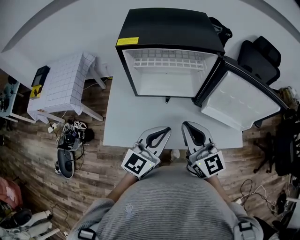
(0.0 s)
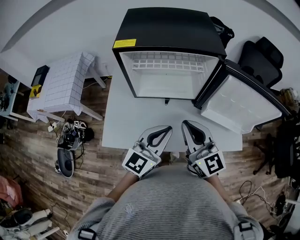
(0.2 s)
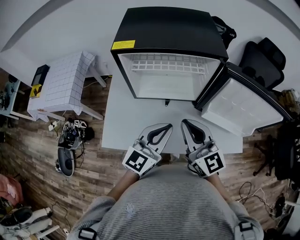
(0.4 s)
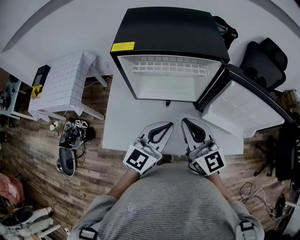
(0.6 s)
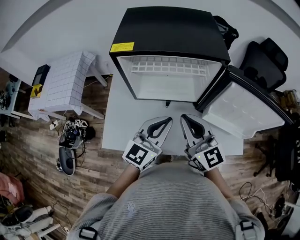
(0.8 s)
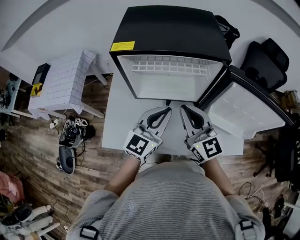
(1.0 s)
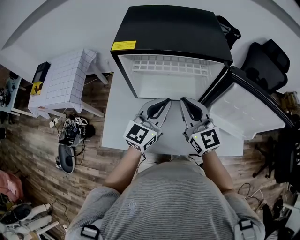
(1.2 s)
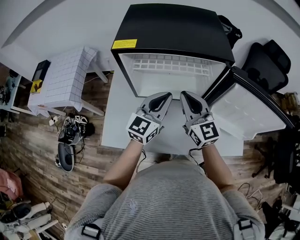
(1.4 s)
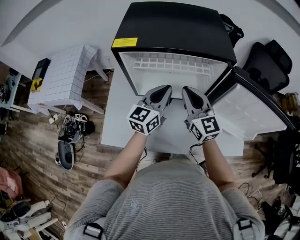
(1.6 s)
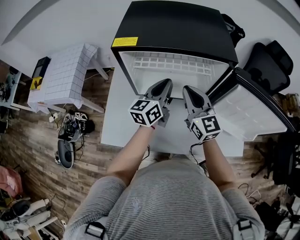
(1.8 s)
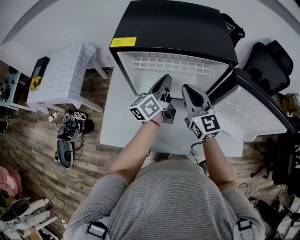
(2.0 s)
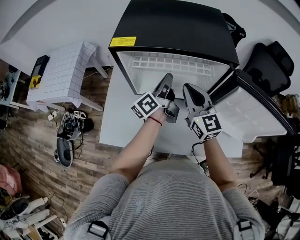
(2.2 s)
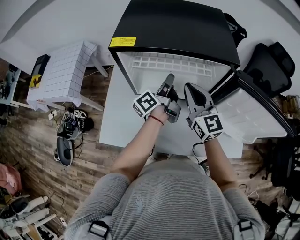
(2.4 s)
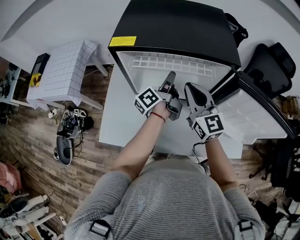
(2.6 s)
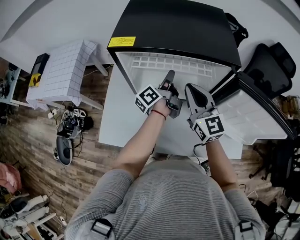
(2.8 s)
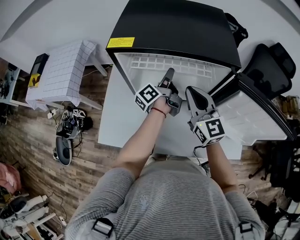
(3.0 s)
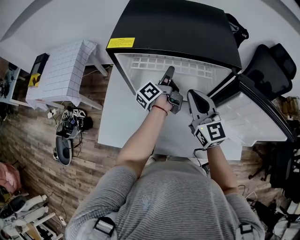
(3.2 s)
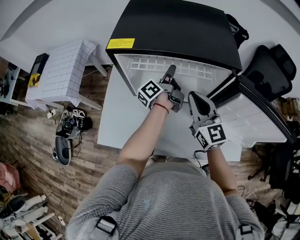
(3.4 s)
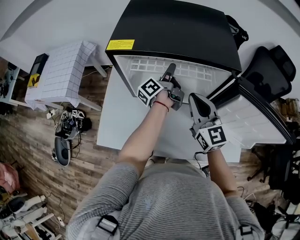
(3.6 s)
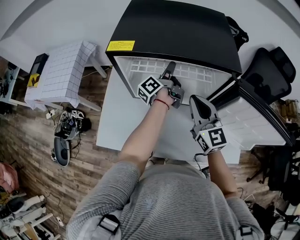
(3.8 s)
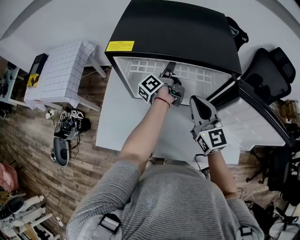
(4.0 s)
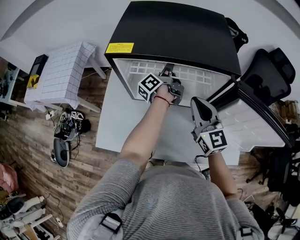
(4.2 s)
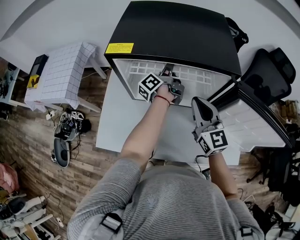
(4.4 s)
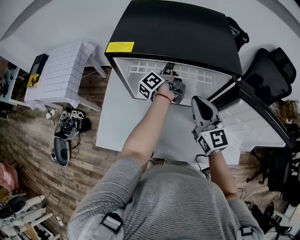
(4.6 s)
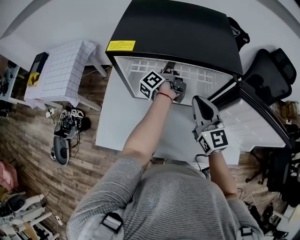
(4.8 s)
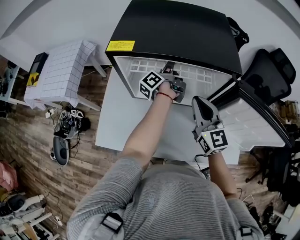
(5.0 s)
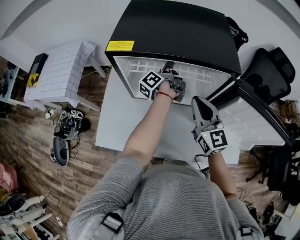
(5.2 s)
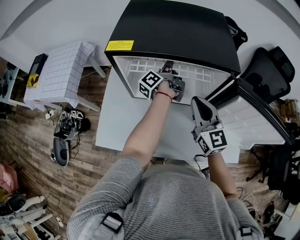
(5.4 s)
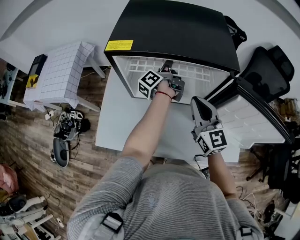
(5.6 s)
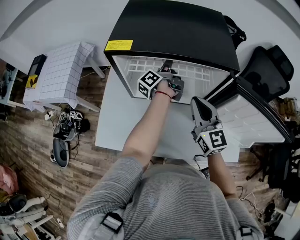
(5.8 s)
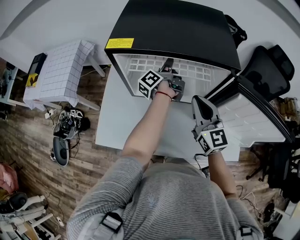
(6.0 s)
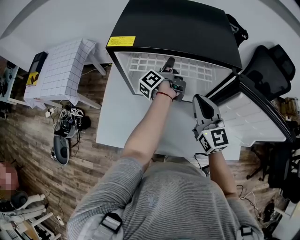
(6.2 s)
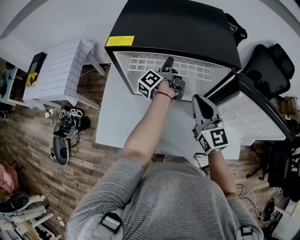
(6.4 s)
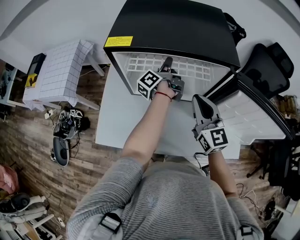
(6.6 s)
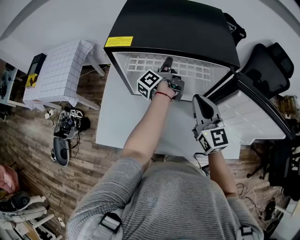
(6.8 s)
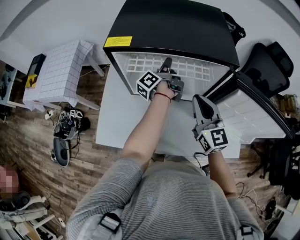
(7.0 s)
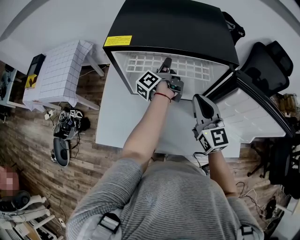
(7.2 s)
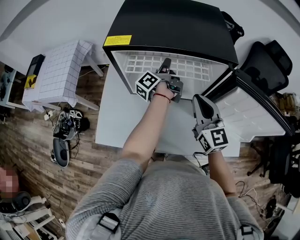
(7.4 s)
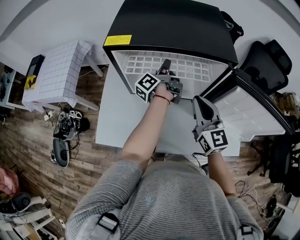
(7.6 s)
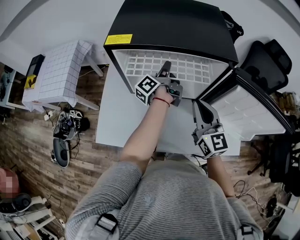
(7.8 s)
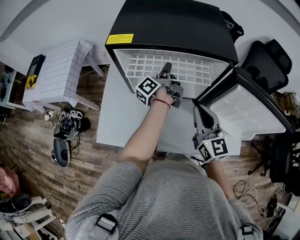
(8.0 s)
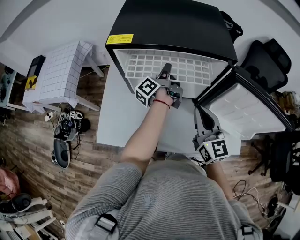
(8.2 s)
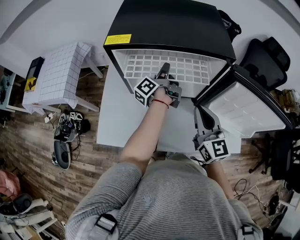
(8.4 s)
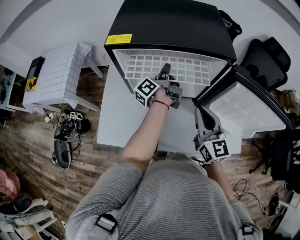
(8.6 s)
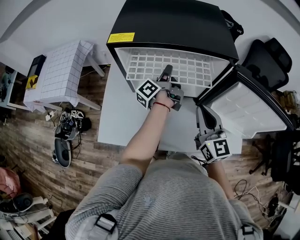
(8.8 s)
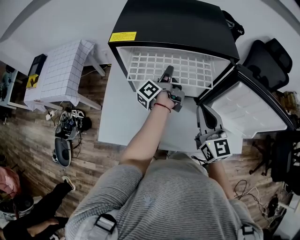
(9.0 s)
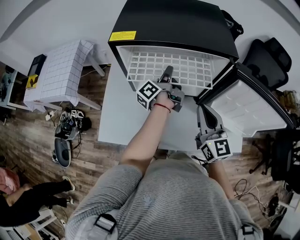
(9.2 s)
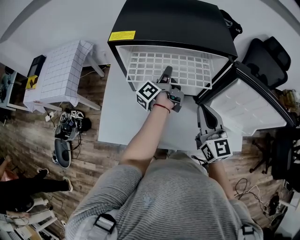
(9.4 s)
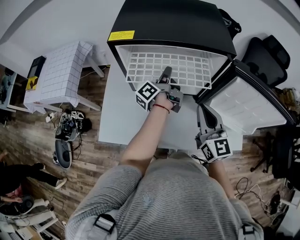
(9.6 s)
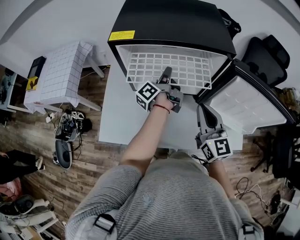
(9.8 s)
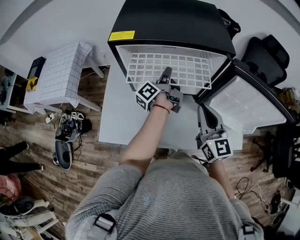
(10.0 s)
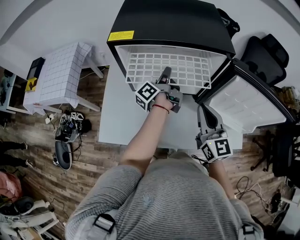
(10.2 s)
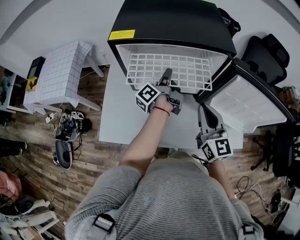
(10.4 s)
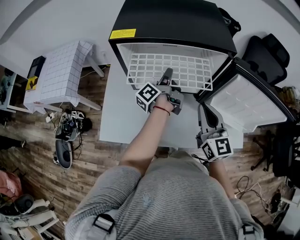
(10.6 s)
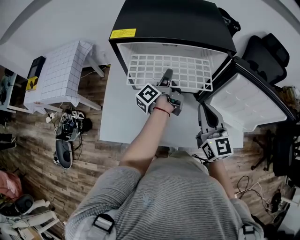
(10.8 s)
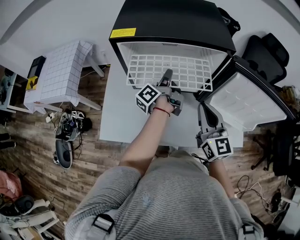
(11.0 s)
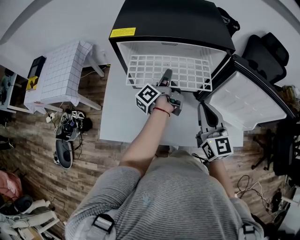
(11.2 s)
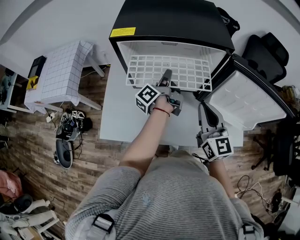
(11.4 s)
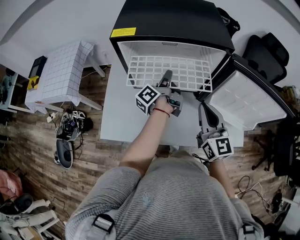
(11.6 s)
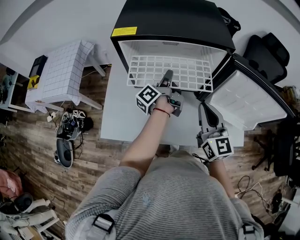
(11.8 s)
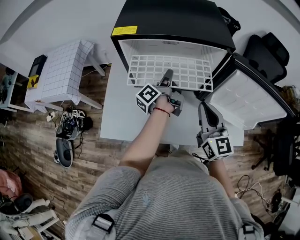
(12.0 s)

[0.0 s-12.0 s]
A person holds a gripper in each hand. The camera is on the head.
0.0 to 1.6 s: The two grippers go roughly 20 cm forward.
1.6 to 3.0 s: The left gripper goes about 10 cm forward and downward, rotates around the line of its fingers by about 60 degrees, counterclockwise from behind, and opens up.
3.0 to 4.4 s: The left gripper goes approximately 5 cm forward.
4.4 to 6.0 s: The left gripper closes up.
6.0 to 7.6 s: The grippers move only a little.
7.6 to 9.0 s: The grippers make only small movements.
9.0 to 12.0 s: The grippers make only small movements.

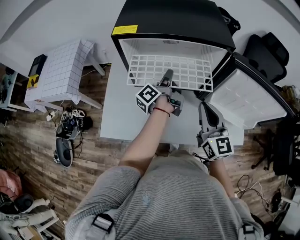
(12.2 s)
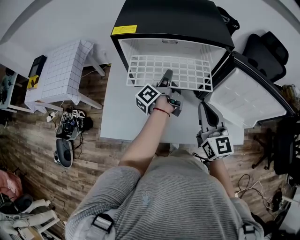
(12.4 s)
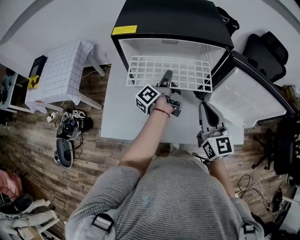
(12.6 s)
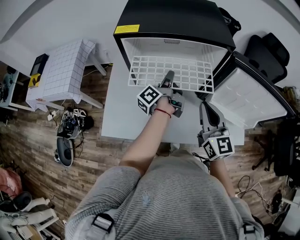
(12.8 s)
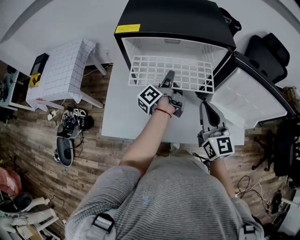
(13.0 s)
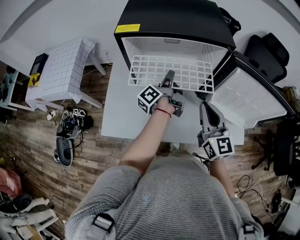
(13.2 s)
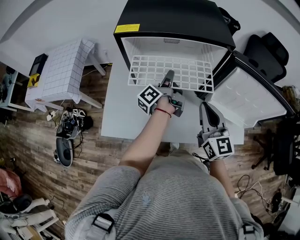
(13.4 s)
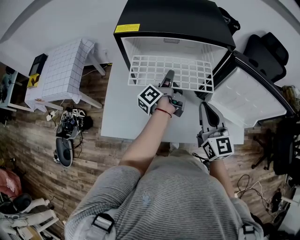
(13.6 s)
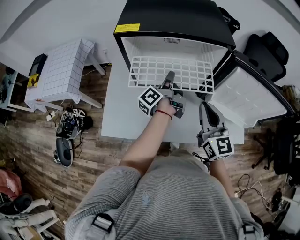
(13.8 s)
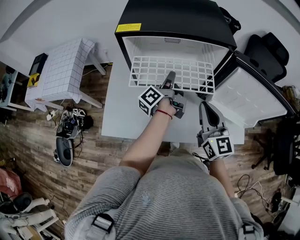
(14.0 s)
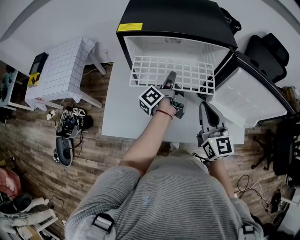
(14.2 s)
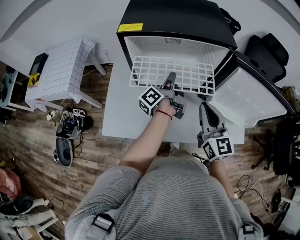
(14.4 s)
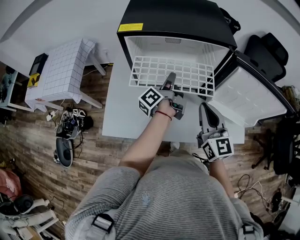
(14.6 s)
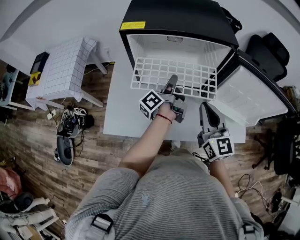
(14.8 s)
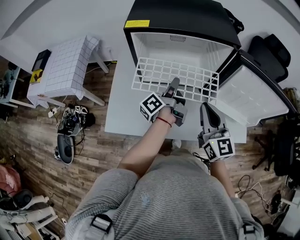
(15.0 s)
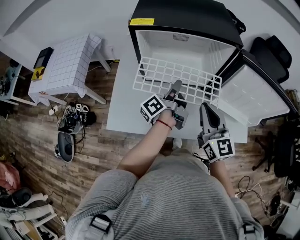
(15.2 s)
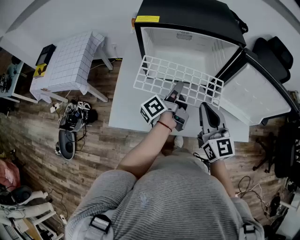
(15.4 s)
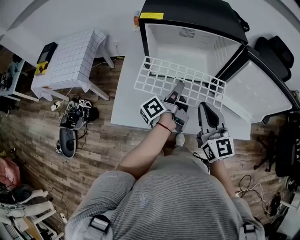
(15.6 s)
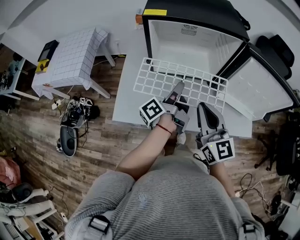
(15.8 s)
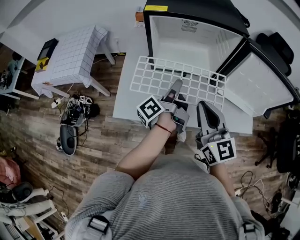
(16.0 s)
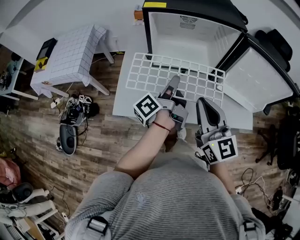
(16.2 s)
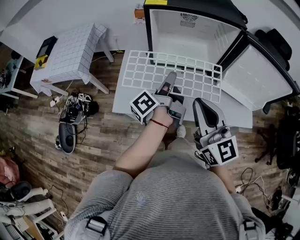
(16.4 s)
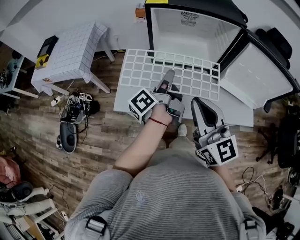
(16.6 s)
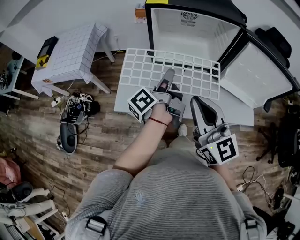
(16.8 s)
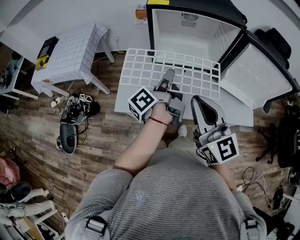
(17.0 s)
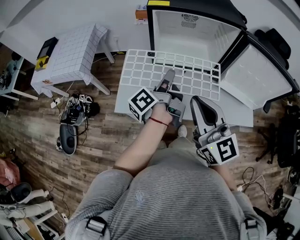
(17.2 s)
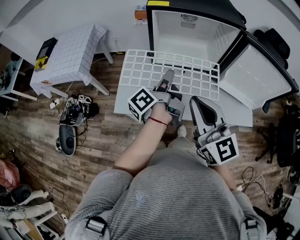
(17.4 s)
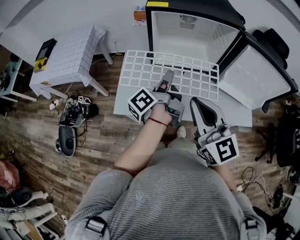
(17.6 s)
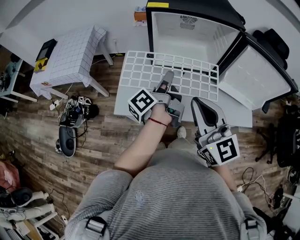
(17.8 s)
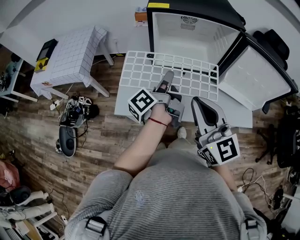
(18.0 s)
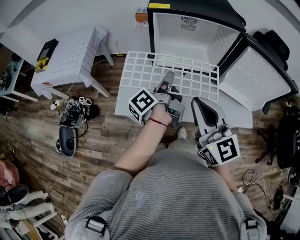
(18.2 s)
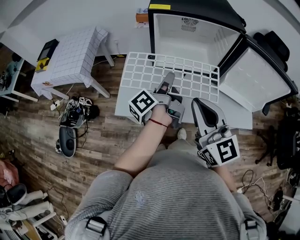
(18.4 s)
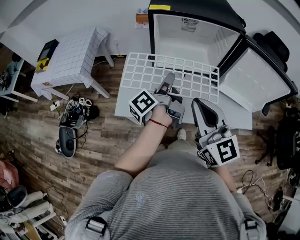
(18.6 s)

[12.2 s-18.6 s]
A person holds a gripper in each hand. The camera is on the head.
12.2 to 13.8 s: Both grippers stay put.
13.8 to 15.4 s: The left gripper is displaced backward by about 10 cm. Meanwhile the right gripper goes approximately 5 cm to the left.
15.4 to 17.0 s: The right gripper moves backward, to the left and upward, approximately 15 cm. The left gripper travels to the left and backward by approximately 10 cm.
17.0 to 18.6 s: The grippers stay close to where they were, moving slightly.

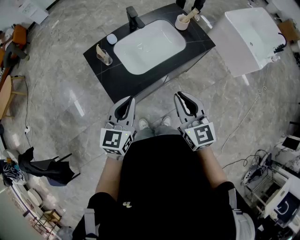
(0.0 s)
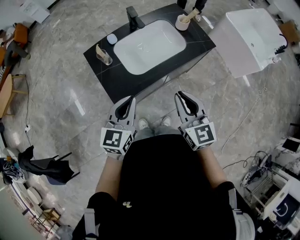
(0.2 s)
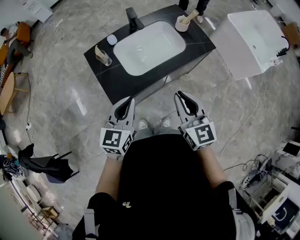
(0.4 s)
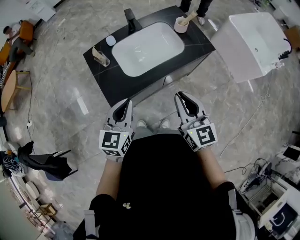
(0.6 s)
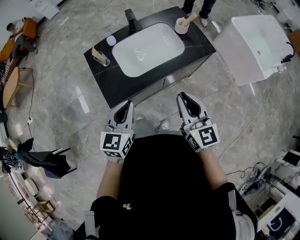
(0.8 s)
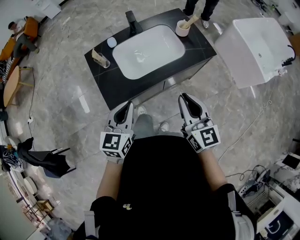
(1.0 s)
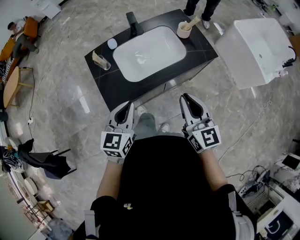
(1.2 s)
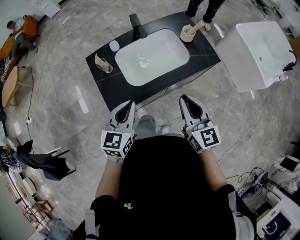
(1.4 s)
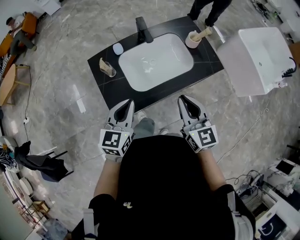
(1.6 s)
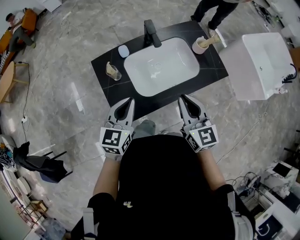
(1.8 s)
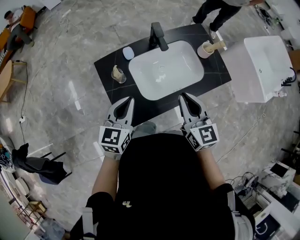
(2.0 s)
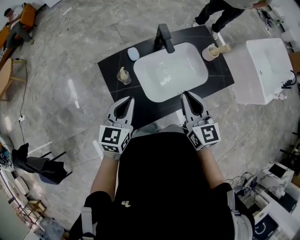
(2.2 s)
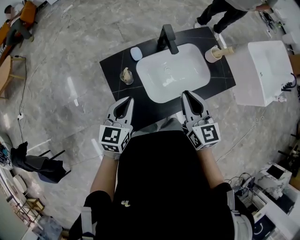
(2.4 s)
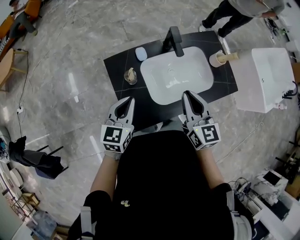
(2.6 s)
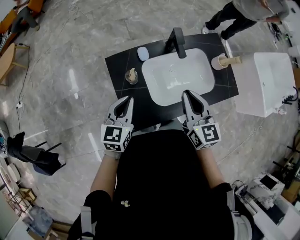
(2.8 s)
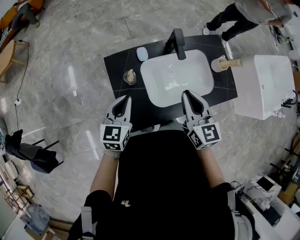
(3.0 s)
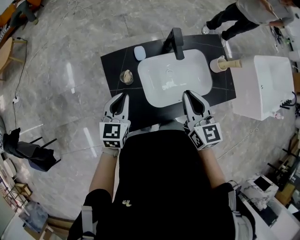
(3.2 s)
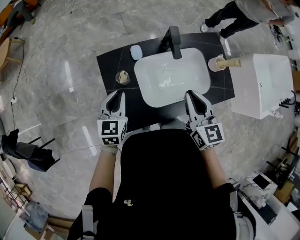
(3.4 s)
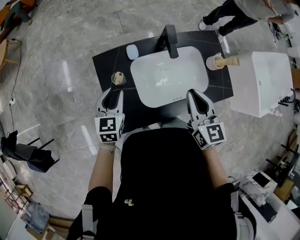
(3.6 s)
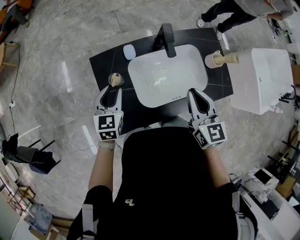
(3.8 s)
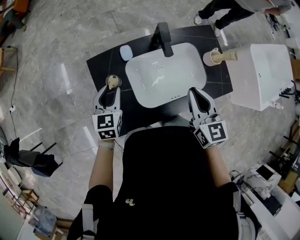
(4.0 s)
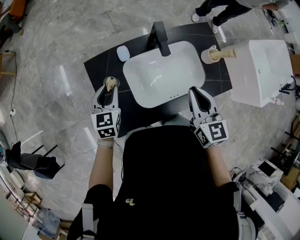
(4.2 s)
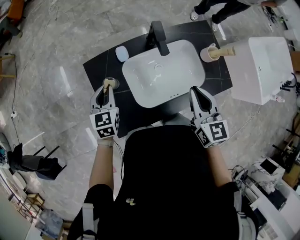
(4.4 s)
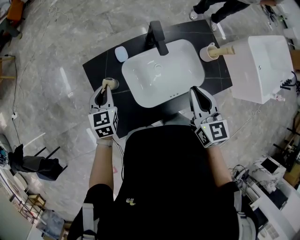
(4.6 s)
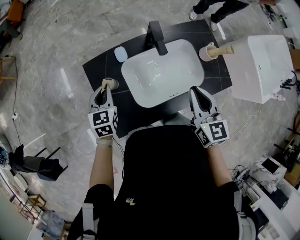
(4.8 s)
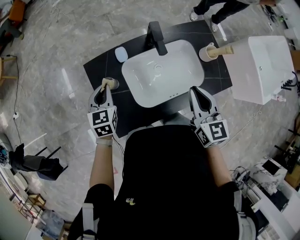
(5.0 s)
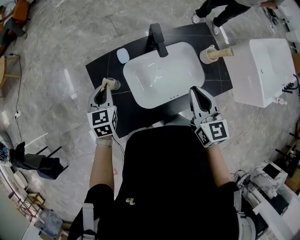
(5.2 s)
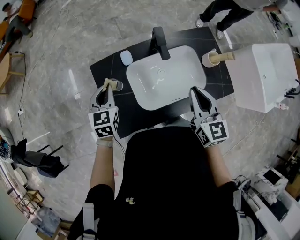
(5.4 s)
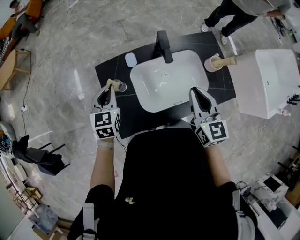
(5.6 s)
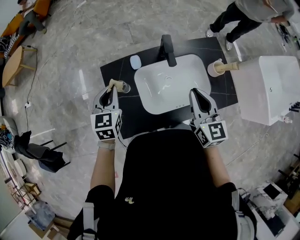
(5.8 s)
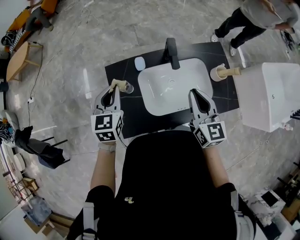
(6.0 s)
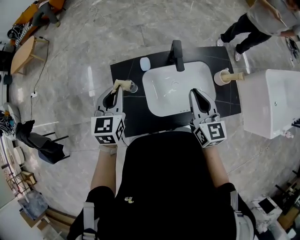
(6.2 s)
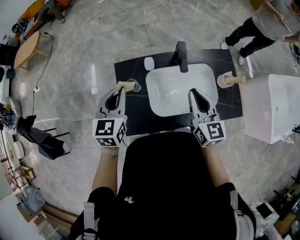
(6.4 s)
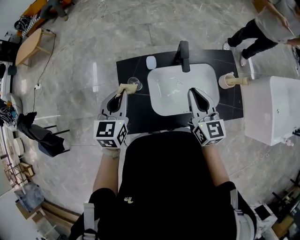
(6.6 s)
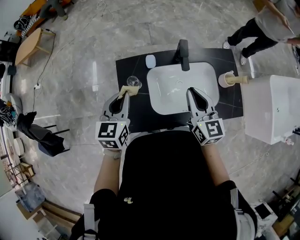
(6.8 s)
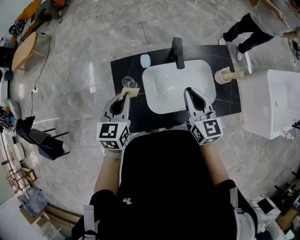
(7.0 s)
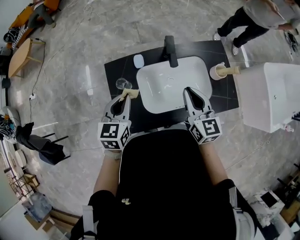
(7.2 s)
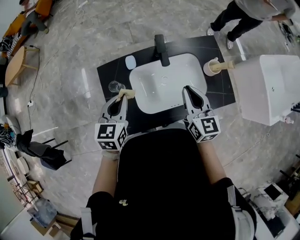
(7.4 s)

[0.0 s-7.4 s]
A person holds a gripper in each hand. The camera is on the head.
0.0 to 1.4 s: The left gripper shifts by roughly 5 cm. Meanwhile the right gripper is displaced forward and to the right by some 10 cm.
1.4 to 3.0 s: The right gripper shifts about 25 cm forward and to the left. Meanwhile the left gripper travels to the left and forward by approximately 20 cm.
3.0 to 4.4 s: The left gripper goes approximately 10 cm forward and downward, while the right gripper goes approximately 10 cm to the right.
4.4 to 6.0 s: The left gripper travels upward by some 10 cm.
6.0 to 7.4 s: The left gripper travels to the right by approximately 5 cm.
